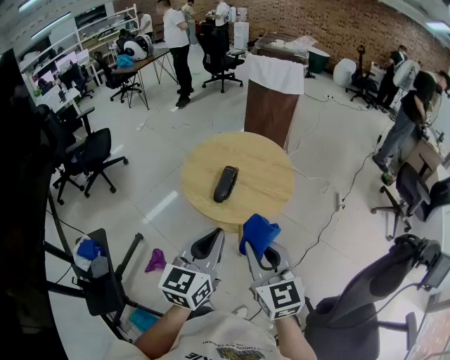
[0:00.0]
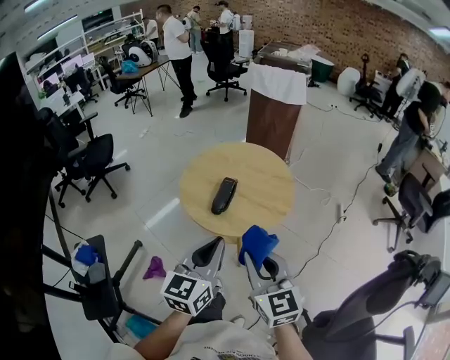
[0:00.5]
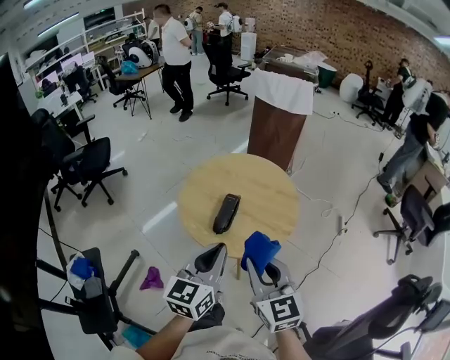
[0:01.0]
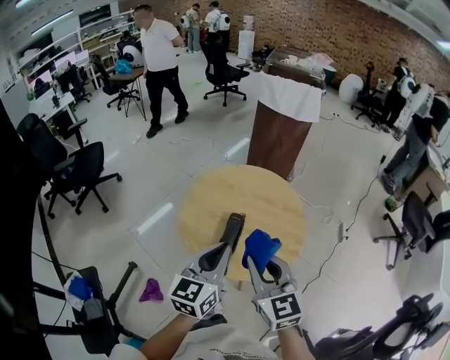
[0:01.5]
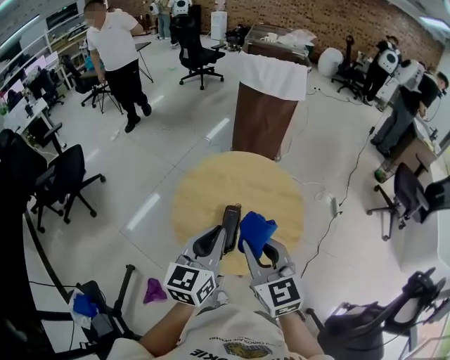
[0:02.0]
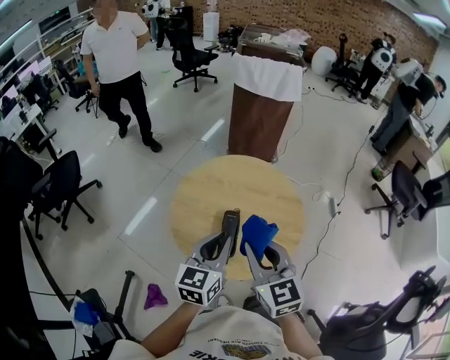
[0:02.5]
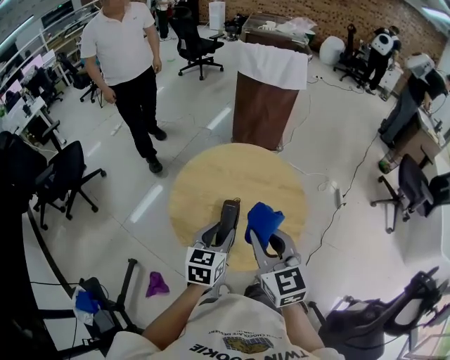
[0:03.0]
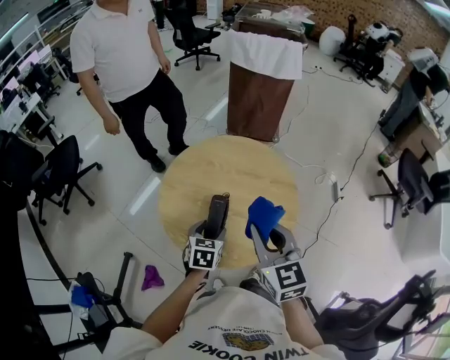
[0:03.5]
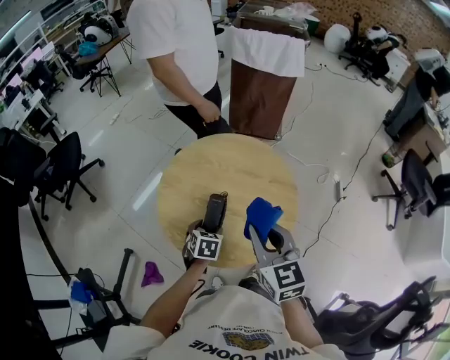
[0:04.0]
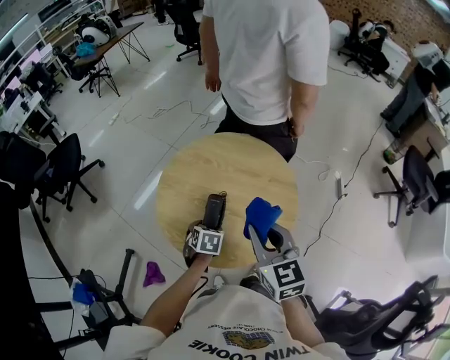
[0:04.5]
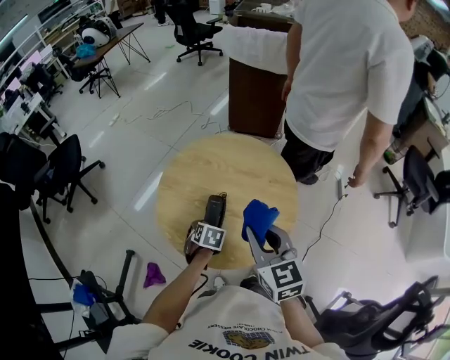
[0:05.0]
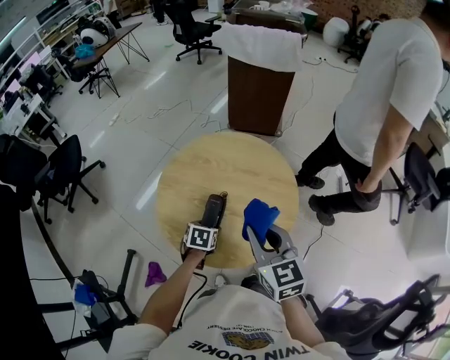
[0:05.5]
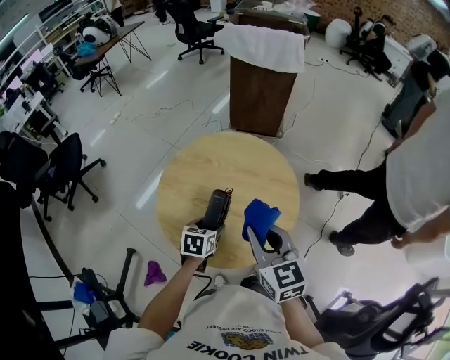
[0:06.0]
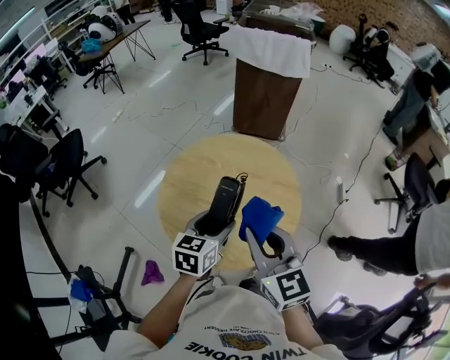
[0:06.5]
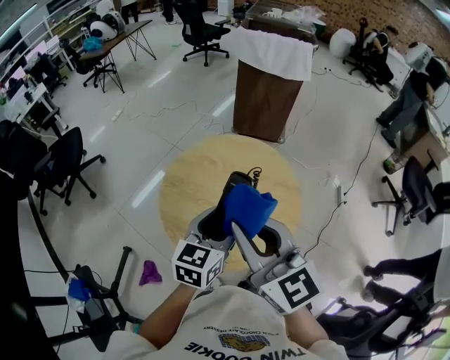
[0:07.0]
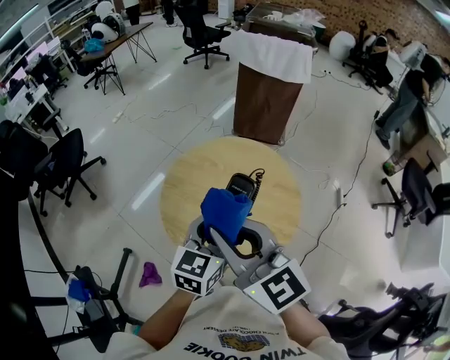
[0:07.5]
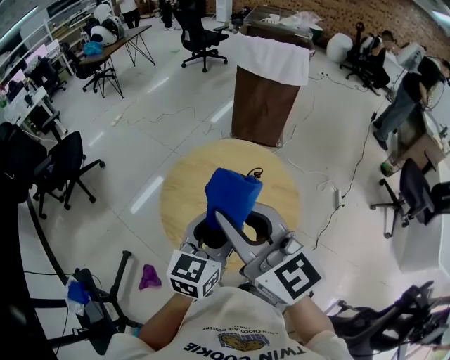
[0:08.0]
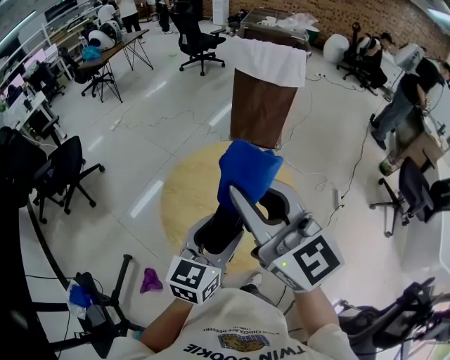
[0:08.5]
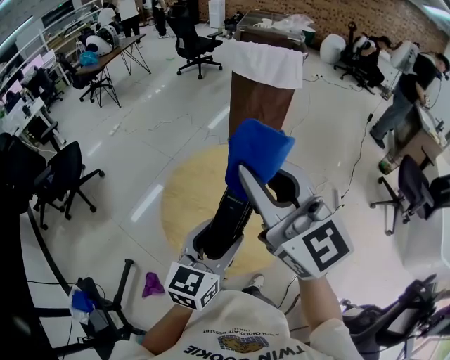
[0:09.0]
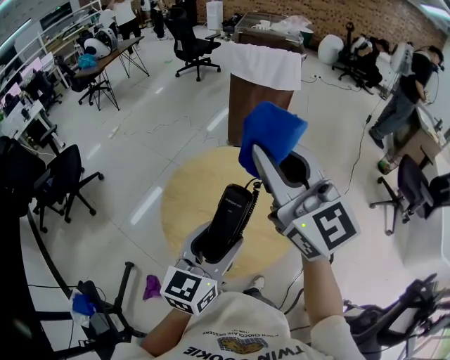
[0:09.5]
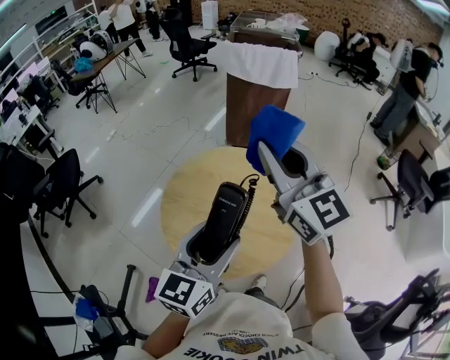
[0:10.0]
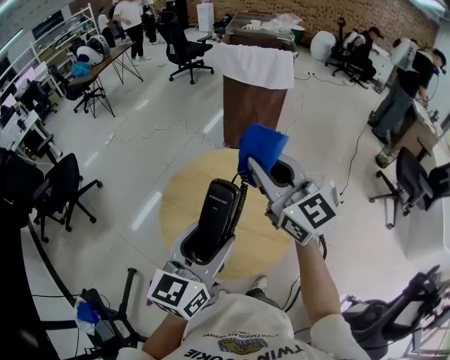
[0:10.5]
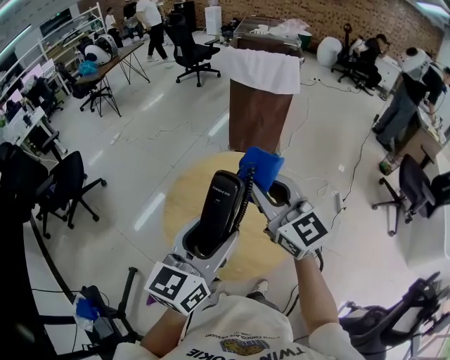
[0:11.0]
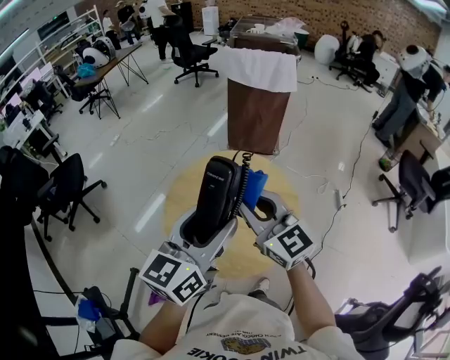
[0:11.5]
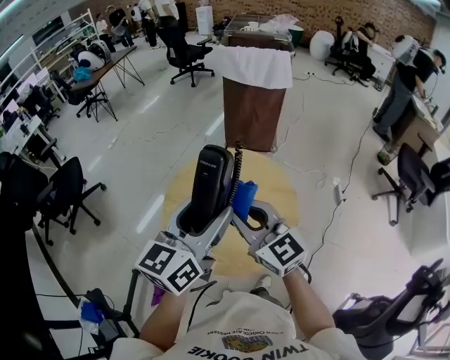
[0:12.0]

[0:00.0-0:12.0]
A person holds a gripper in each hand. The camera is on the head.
0:00.0 to 0:02.0: The two grippers go roughly 25 cm forward.
0:02.0 to 0:04.0: The right gripper travels to the right by roughly 10 cm; the left gripper is displaced downward by some 25 cm, points its fingers roughly 50 degrees further downward, and opens its fingers.
0:04.0 to 0:06.0: The grippers move only a little.
0:06.0 to 0:08.0: The left gripper travels upward by approximately 25 cm, and angles its fingers upward, by some 40 degrees. The right gripper heads upward and to the left, covering some 20 cm, and swivels roughly 30 degrees.
0:08.0 to 0:10.0: The left gripper moves about 5 cm. Meanwhile the right gripper shifts approximately 15 cm forward and to the right.
0:10.0 to 0:12.0: The left gripper is displaced upward by about 5 cm. The right gripper travels downward, backward and to the left by roughly 15 cm.

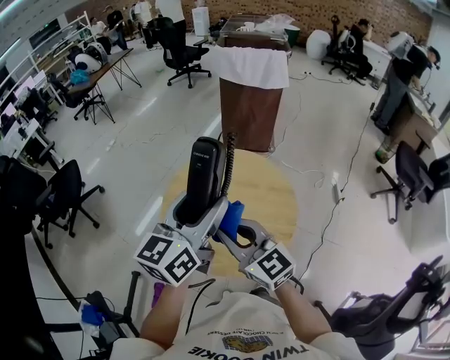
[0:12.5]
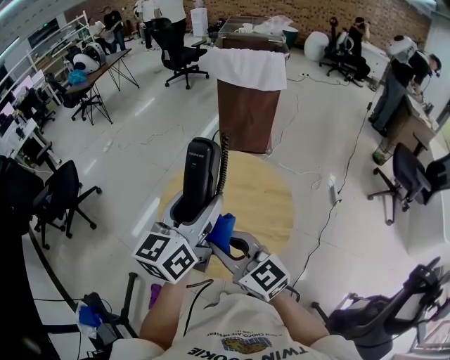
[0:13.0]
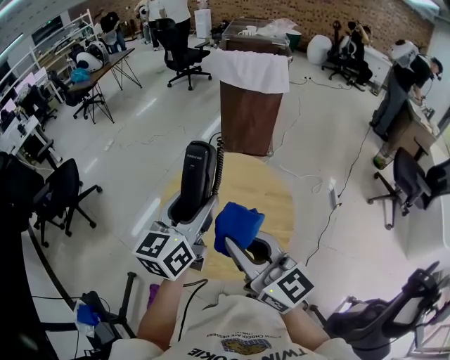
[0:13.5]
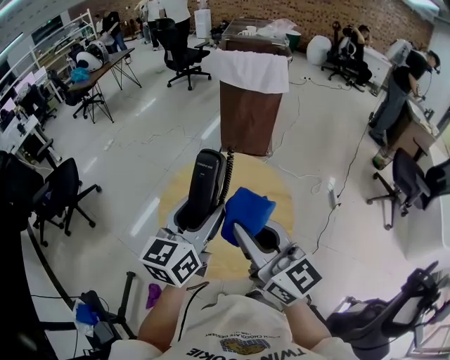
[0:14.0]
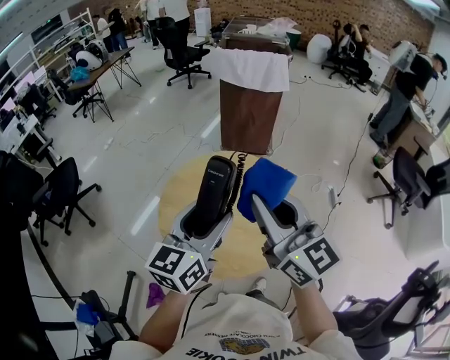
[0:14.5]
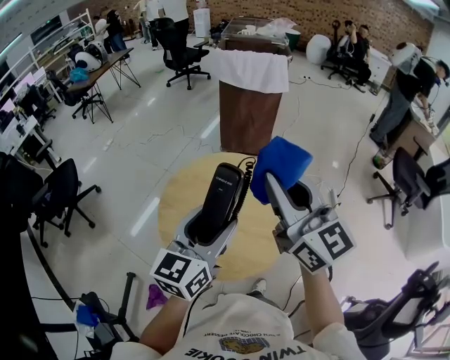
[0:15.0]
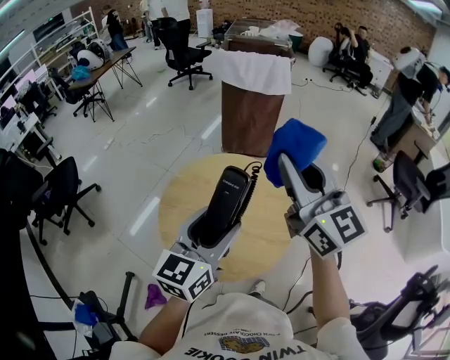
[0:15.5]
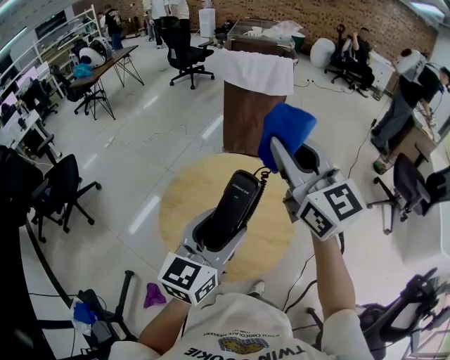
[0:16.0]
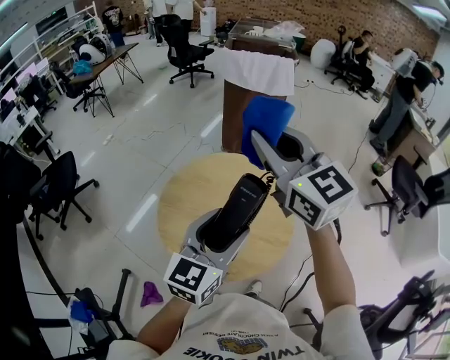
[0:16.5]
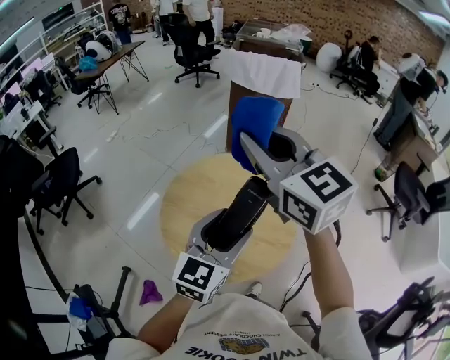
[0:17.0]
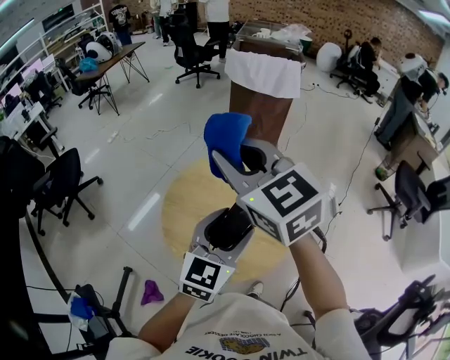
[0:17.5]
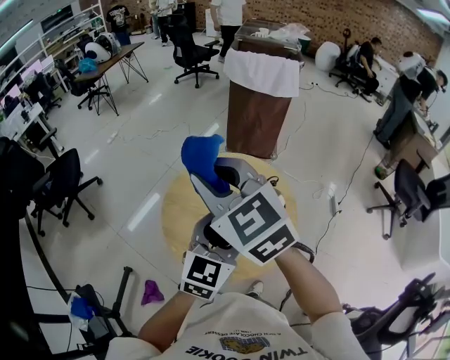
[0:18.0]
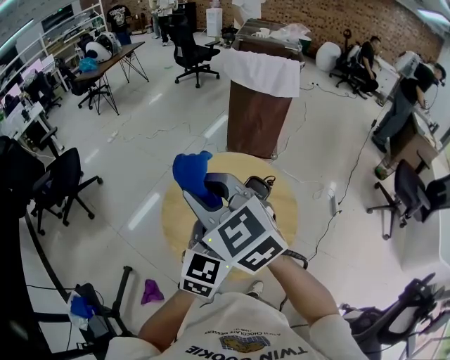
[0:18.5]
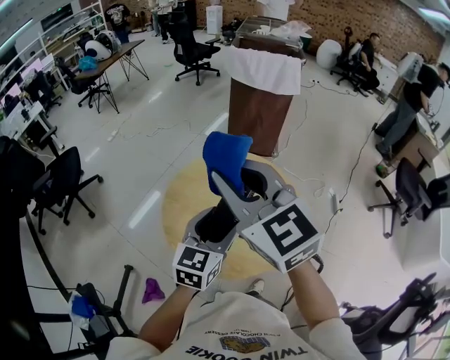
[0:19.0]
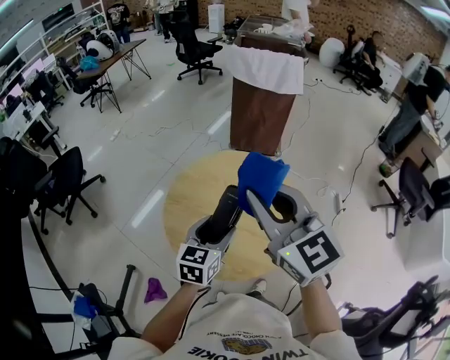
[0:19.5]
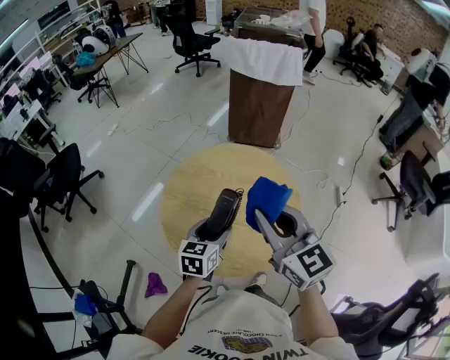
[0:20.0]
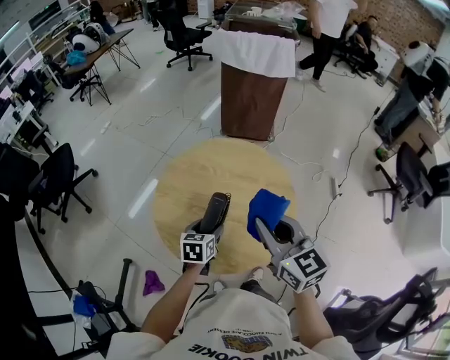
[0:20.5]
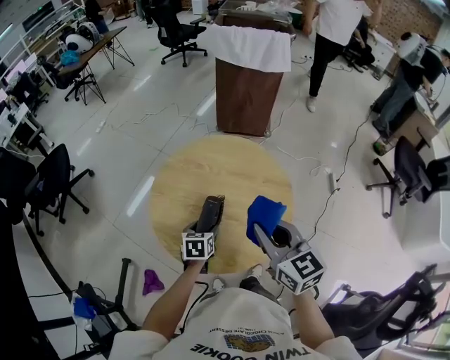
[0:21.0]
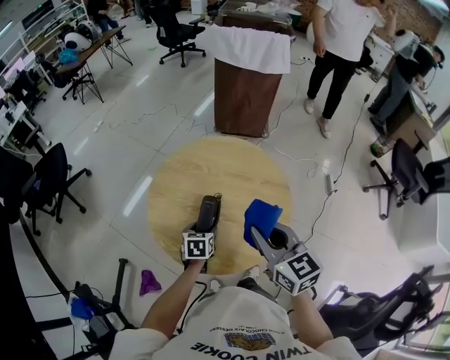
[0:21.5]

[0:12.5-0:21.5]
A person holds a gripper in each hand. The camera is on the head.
0:12.5 to 0:14.5: The right gripper shifts approximately 15 cm upward and to the right.
0:14.5 to 0:17.0: The right gripper is displaced forward, upward and to the left by some 15 cm.
0:17.0 to 0:19.5: The right gripper moves downward and backward, roughly 10 cm, and travels to the left and back again, some 10 cm each way. The left gripper moves downward, some 10 cm.
0:19.5 to 0:21.5: Both grippers travel together downward, about 20 cm. The left gripper changes its angle by about 30 degrees. Meanwhile the right gripper turns by roughly 20 degrees.

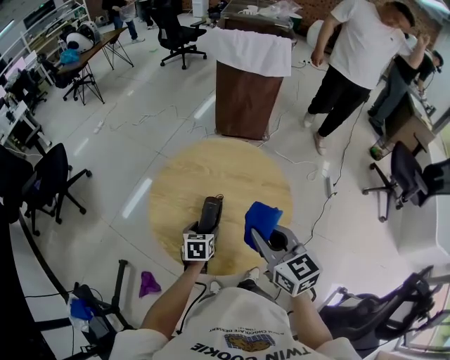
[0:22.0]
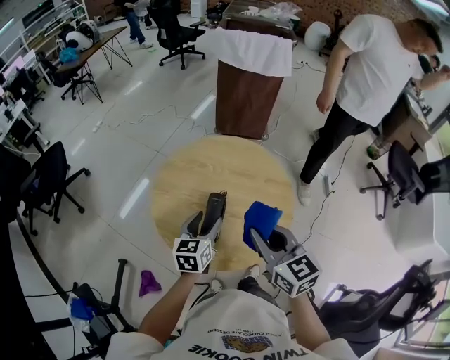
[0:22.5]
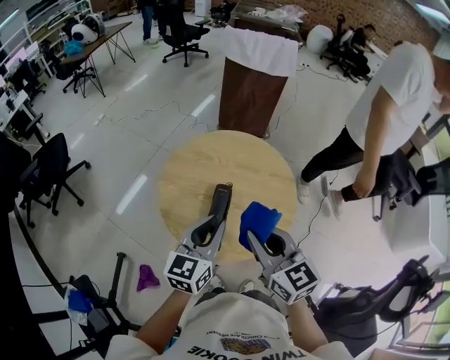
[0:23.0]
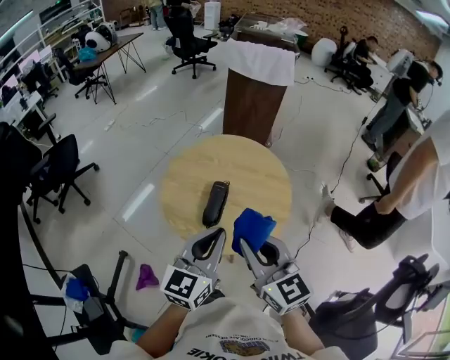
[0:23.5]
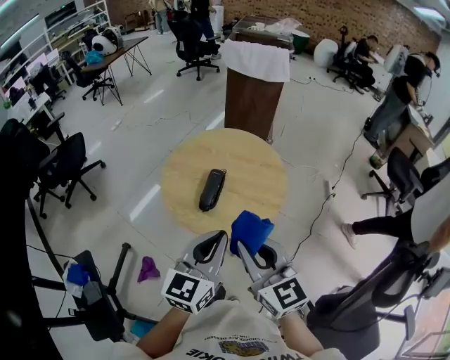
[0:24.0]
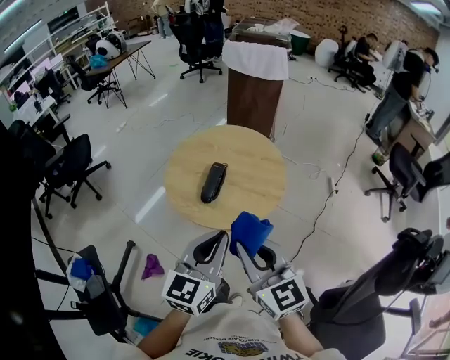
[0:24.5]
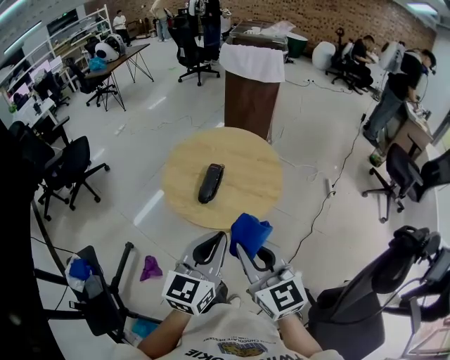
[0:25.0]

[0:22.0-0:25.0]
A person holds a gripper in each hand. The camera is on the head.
0:22.0 to 0:23.5: The left gripper heads upward and backward, covering roughly 35 cm, tilts its fingers some 40 degrees upward, and closes. Meanwhile the right gripper travels backward, upward and to the left by roughly 15 cm.
0:23.5 to 0:25.0: The two grippers go approximately 10 cm backward.

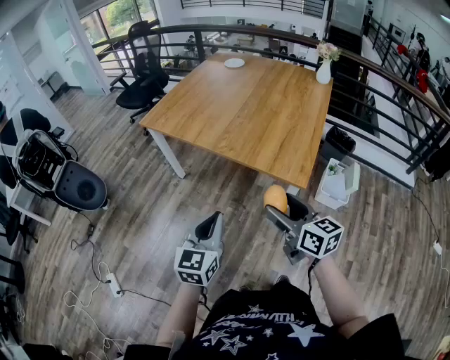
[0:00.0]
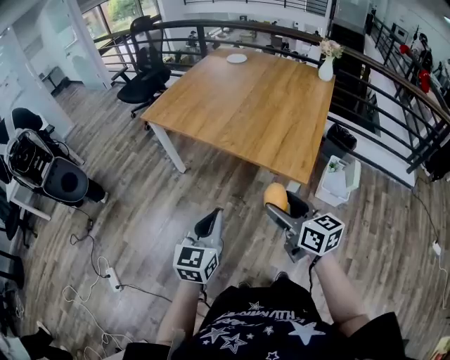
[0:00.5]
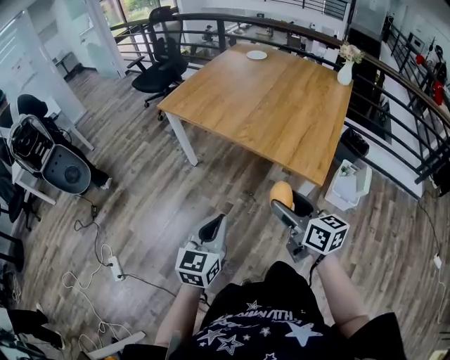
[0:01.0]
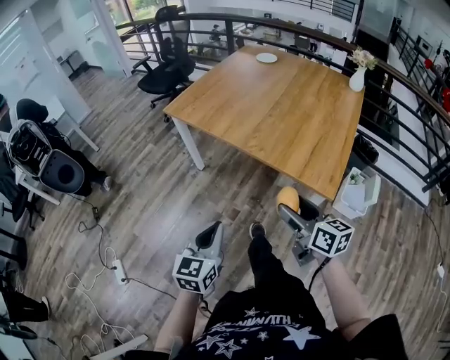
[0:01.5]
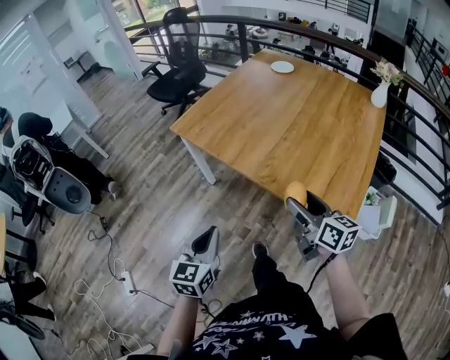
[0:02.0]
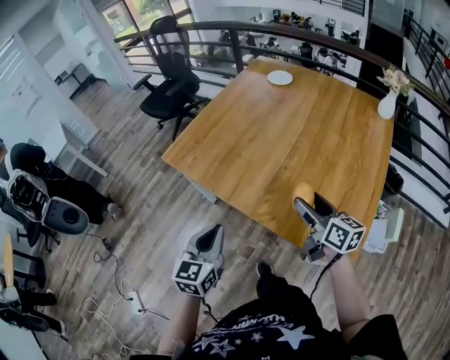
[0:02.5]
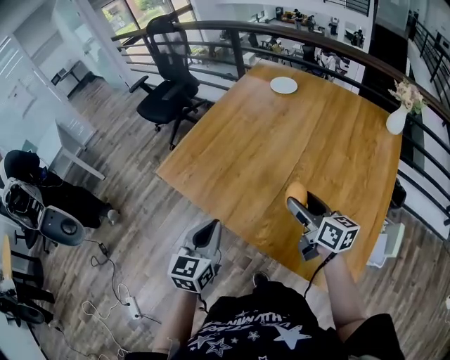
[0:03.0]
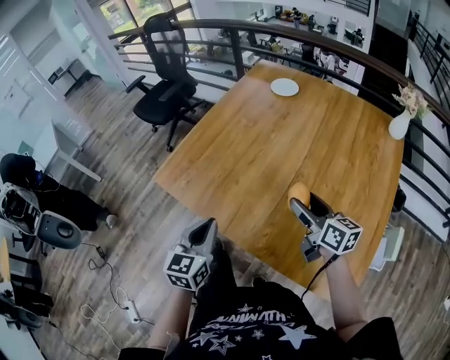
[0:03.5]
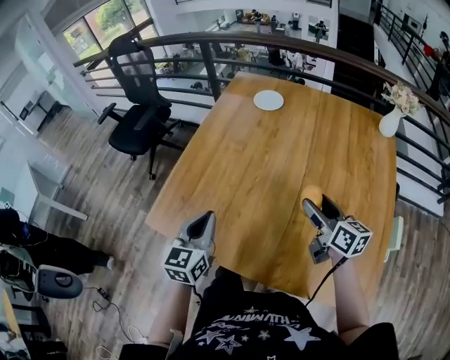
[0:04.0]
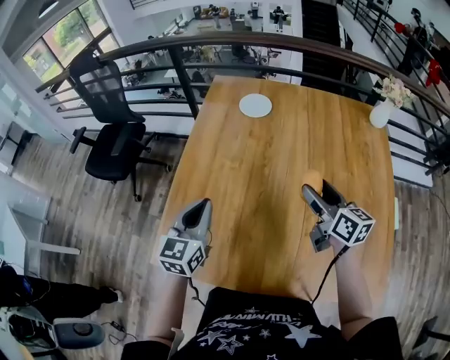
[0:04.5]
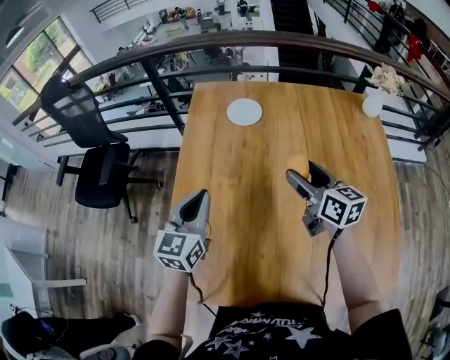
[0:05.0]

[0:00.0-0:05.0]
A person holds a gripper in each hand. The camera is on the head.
0:00.0 to 0:02.5: Both grippers travel together forward, roughly 35 cm.
0:02.5 to 0:05.0: The pair of grippers is taken roughly 50 cm. The right gripper turns by approximately 30 degrees; the left gripper swivels about 30 degrees.
